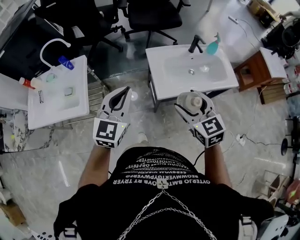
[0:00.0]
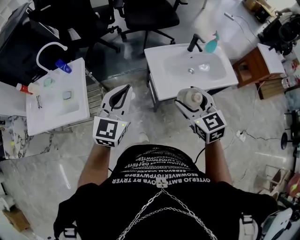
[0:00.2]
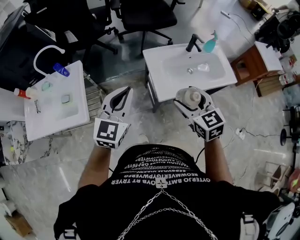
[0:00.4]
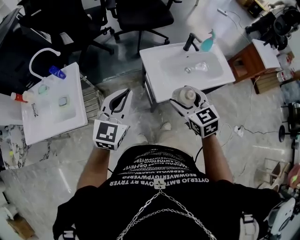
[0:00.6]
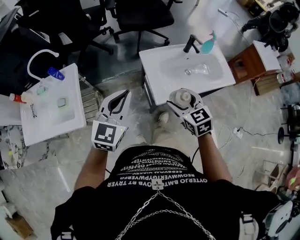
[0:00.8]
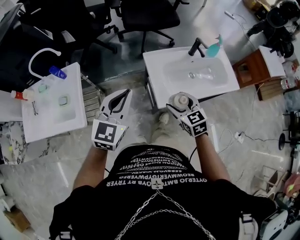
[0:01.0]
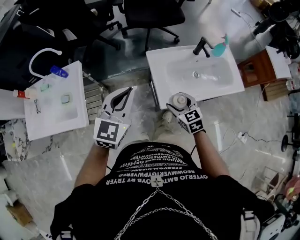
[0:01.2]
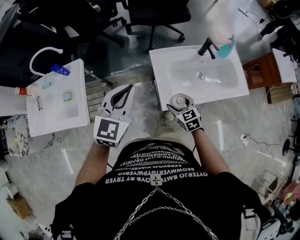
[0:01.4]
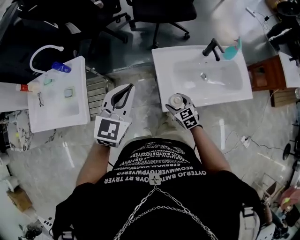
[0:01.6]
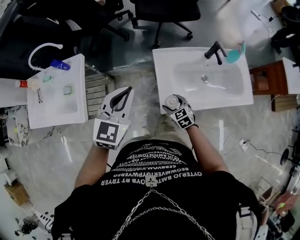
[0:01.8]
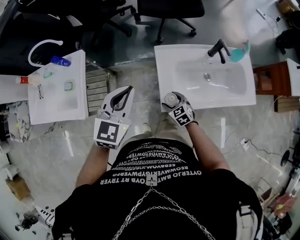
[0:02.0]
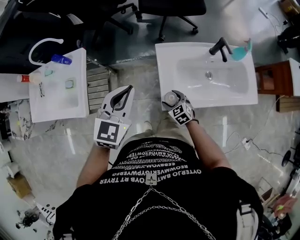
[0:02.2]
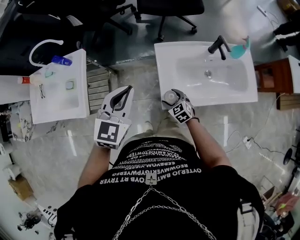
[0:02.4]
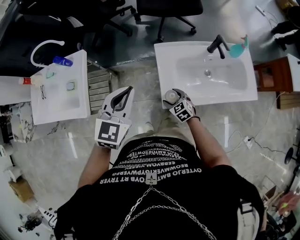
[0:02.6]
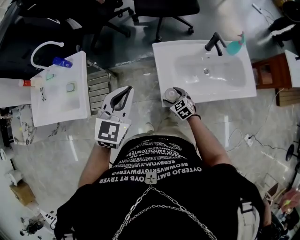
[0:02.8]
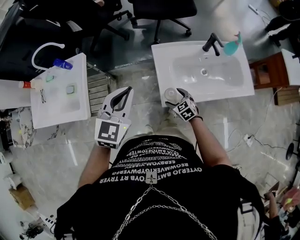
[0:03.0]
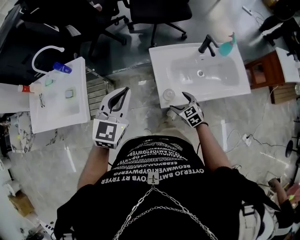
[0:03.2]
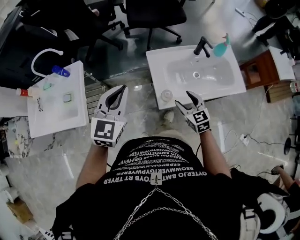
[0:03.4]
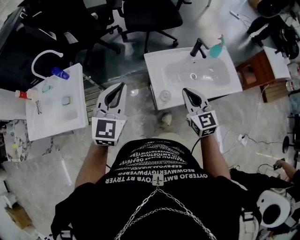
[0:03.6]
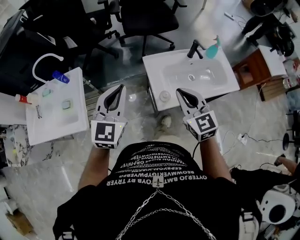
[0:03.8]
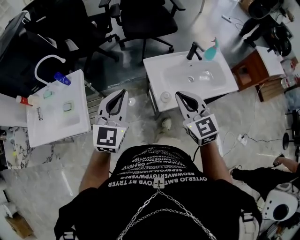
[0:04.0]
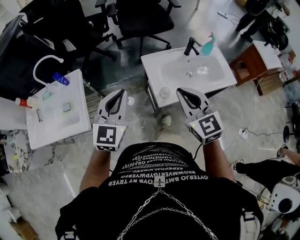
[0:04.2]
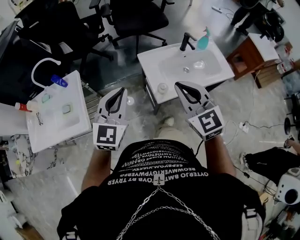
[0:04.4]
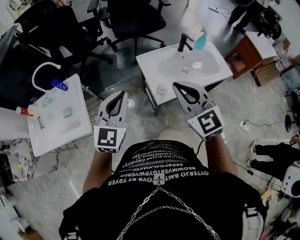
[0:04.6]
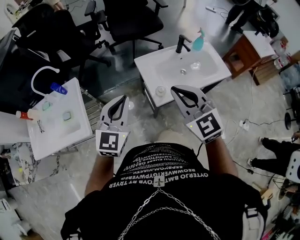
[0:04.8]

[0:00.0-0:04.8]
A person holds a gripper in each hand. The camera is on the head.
0:00.0 to 0:01.6: The left gripper is displaced forward by roughly 20 cm, while the right gripper heads downward and forward, covering approximately 35 cm, and rotates approximately 20 degrees.
0:03.2 to 0:04.8: The right gripper is displaced upward by some 40 cm, tips its fingers upward by about 30 degrees, and closes up. The left gripper heads backward and upward, covering about 10 cm.

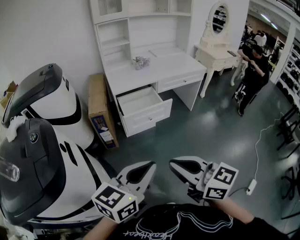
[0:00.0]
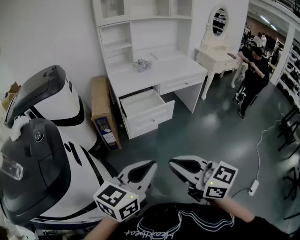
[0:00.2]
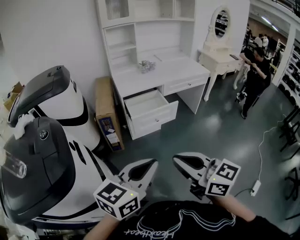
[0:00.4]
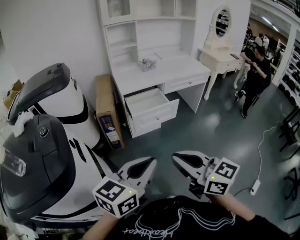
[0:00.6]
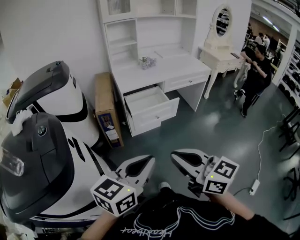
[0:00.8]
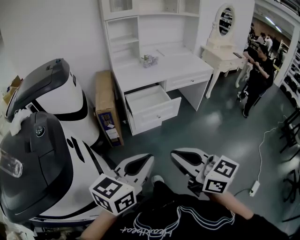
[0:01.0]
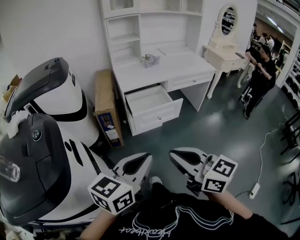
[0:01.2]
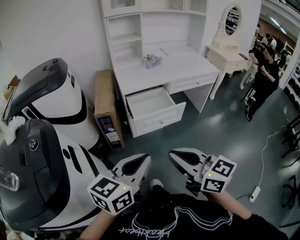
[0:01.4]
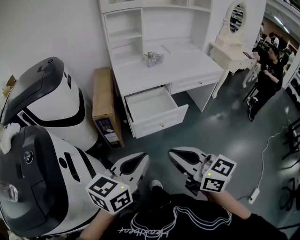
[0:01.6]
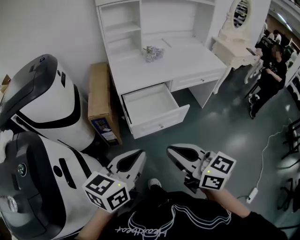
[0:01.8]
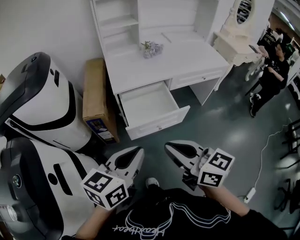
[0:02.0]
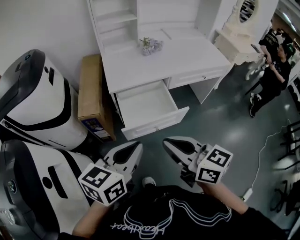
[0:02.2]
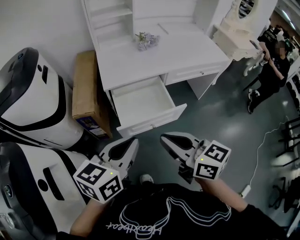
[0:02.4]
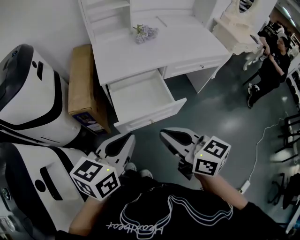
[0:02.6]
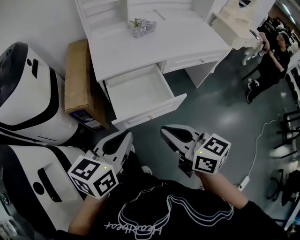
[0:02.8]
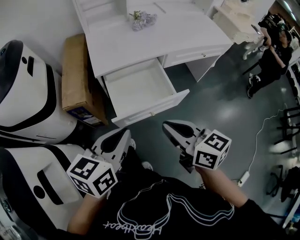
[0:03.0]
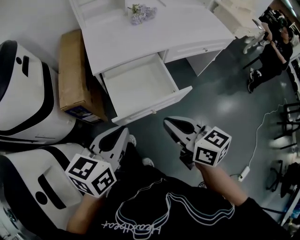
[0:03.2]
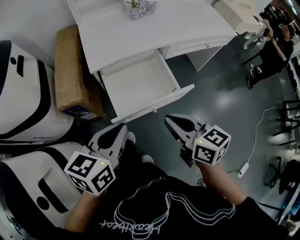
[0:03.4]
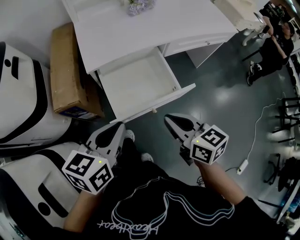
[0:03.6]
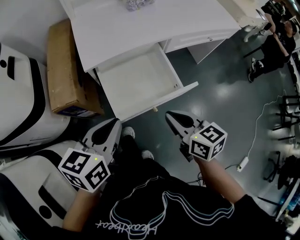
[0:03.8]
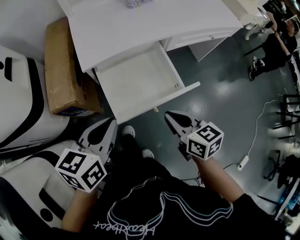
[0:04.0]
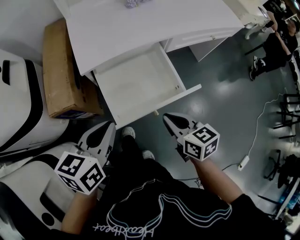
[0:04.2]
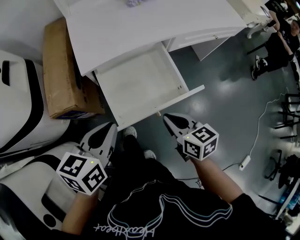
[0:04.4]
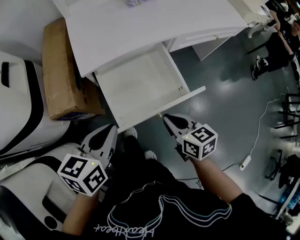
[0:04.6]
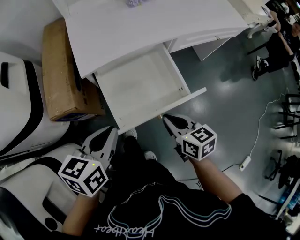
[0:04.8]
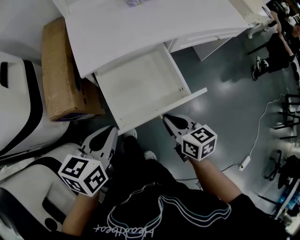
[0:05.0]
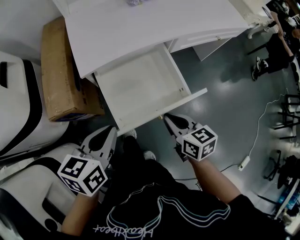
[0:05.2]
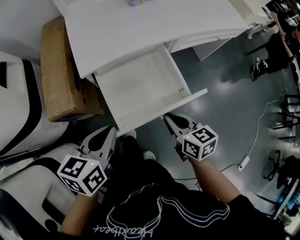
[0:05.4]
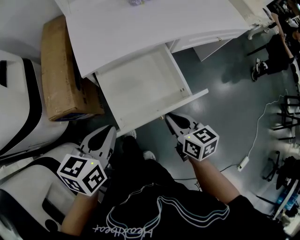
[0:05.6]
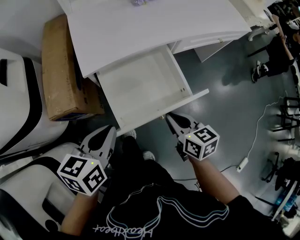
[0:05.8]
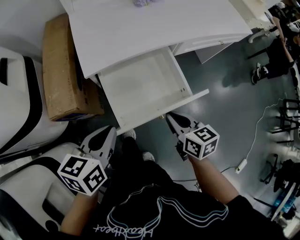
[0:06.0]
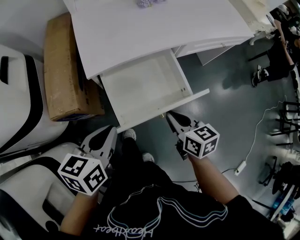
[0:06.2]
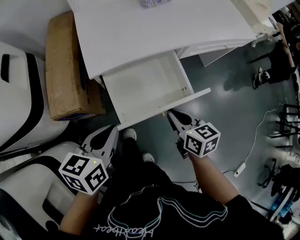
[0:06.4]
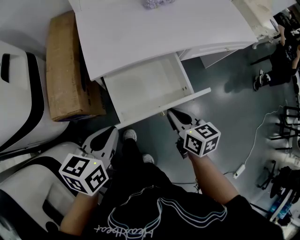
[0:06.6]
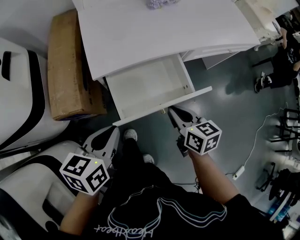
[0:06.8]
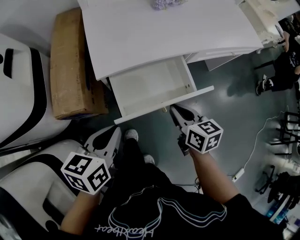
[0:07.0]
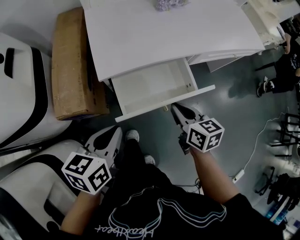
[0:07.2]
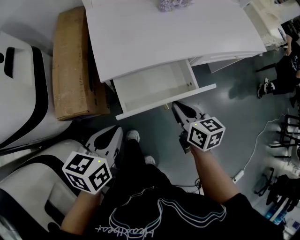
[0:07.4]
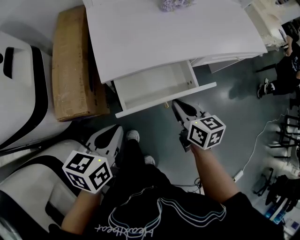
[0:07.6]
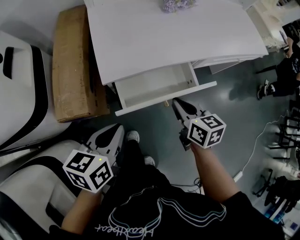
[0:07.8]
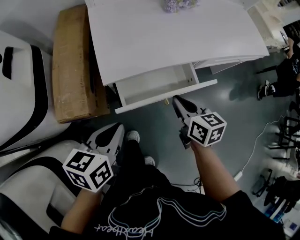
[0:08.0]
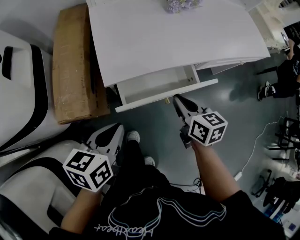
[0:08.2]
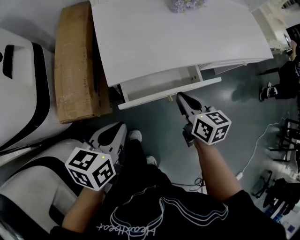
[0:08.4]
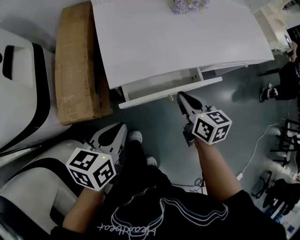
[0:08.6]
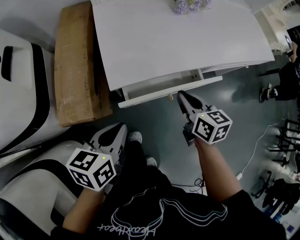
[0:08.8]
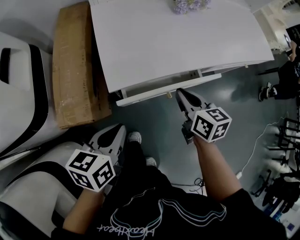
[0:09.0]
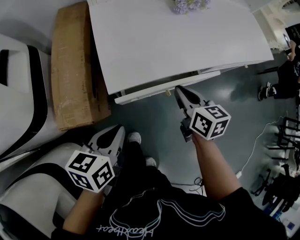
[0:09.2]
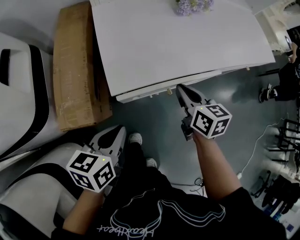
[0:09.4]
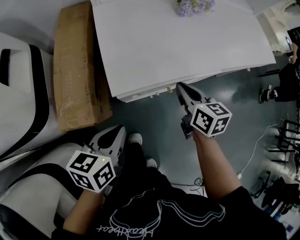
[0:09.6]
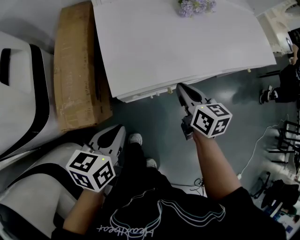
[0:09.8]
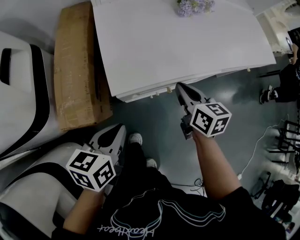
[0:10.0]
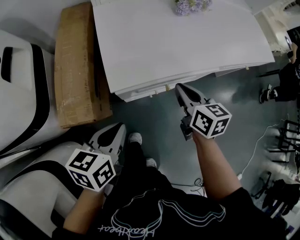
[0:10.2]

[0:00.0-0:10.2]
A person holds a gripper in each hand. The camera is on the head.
0:00.0 to 0:01.4: The right gripper is displaced forward by some 10 cm. Meanwhile the left gripper moves forward and to the left, roughly 10 cm.
0:01.4 to 0:03.0: Both grippers travel together forward and downward, some 30 cm.
0:03.0 to 0:04.4: Both grippers travel together downward and forward, roughly 15 cm.
0:04.4 to 0:05.8: The grippers make only small movements.
0:05.8 to 0:07.2: The right gripper moves forward, some 10 cm.
0:07.2 to 0:08.8: The right gripper is displaced forward by about 10 cm. Meanwhile the left gripper shifts by approximately 5 cm.
0:08.8 to 0:10.2: The grippers move only a little.

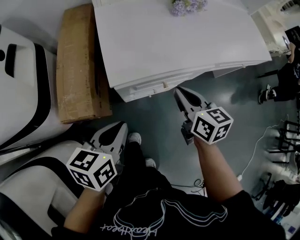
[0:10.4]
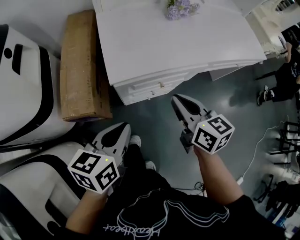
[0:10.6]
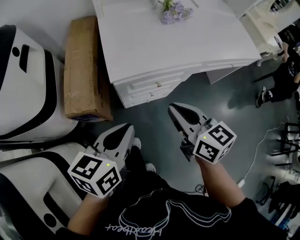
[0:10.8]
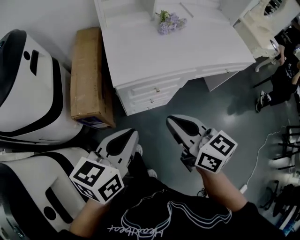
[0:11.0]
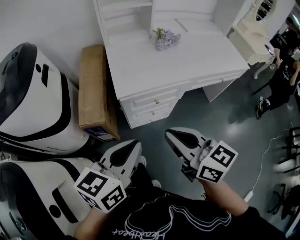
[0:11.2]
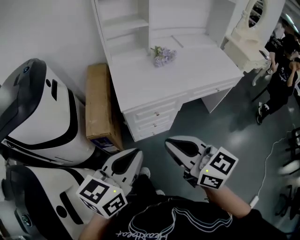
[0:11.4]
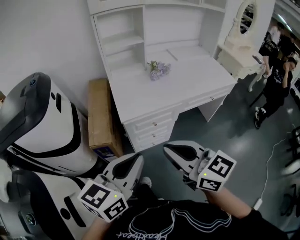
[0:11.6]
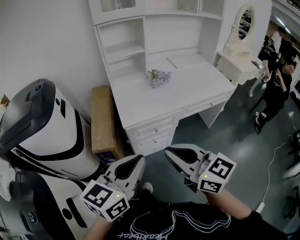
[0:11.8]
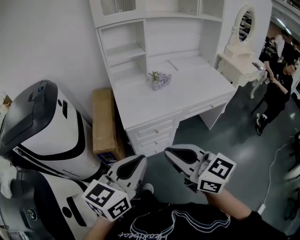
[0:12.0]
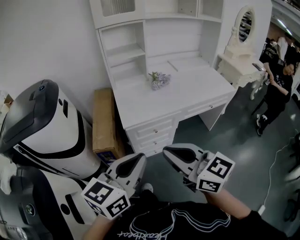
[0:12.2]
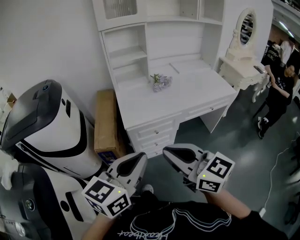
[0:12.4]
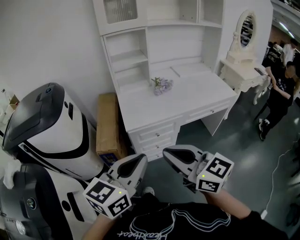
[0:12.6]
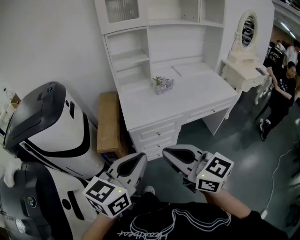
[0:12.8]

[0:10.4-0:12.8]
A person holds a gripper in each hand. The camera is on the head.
0:10.4 to 0:11.6: Both grippers travel together upward and backward, approximately 35 cm. The left gripper turns by some 30 degrees. Meanwhile the right gripper swivels some 30 degrees.
0:11.6 to 0:12.8: The left gripper changes place by about 5 cm; the right gripper shifts by roughly 5 cm.

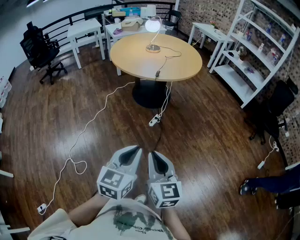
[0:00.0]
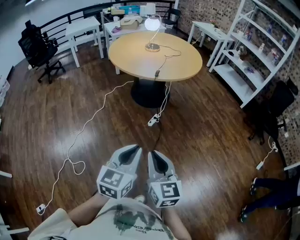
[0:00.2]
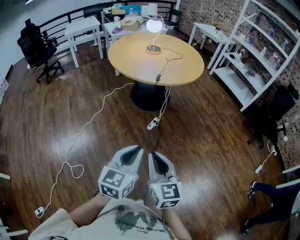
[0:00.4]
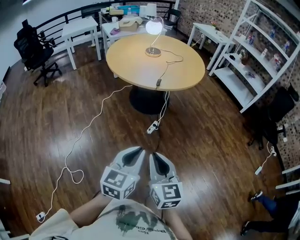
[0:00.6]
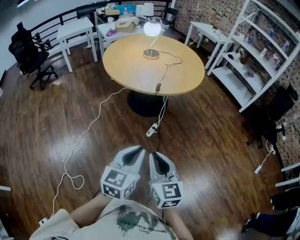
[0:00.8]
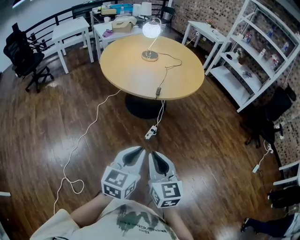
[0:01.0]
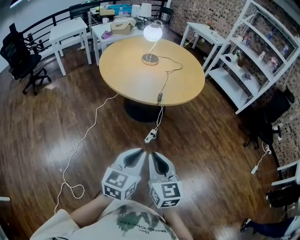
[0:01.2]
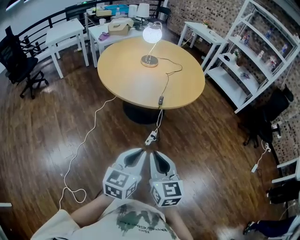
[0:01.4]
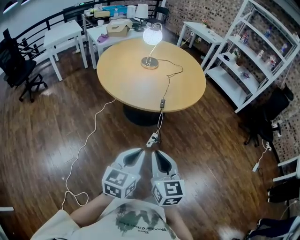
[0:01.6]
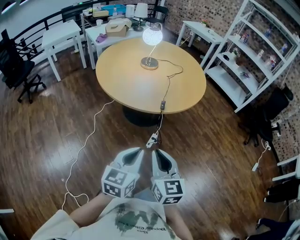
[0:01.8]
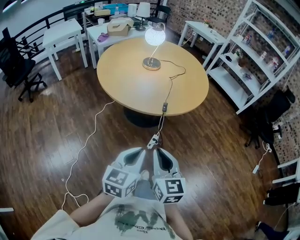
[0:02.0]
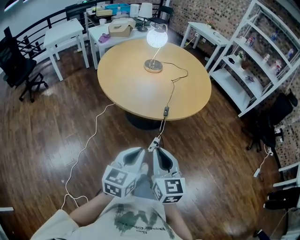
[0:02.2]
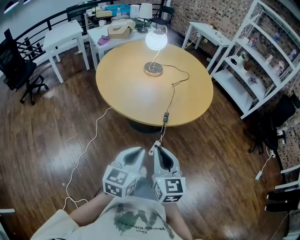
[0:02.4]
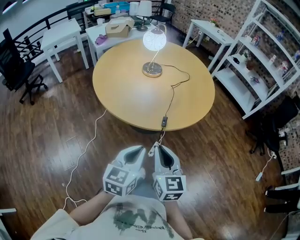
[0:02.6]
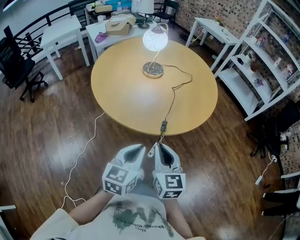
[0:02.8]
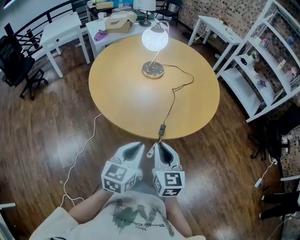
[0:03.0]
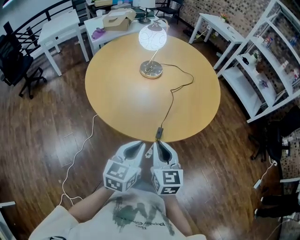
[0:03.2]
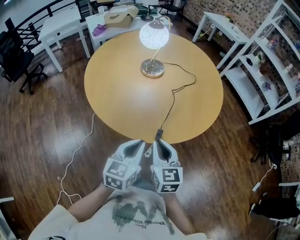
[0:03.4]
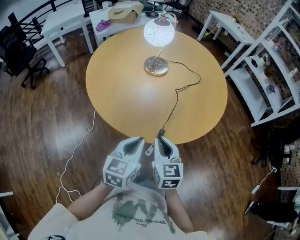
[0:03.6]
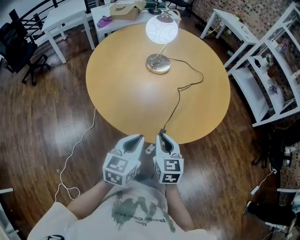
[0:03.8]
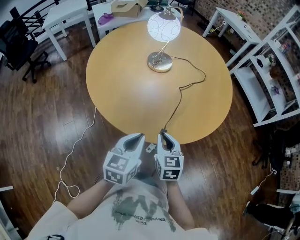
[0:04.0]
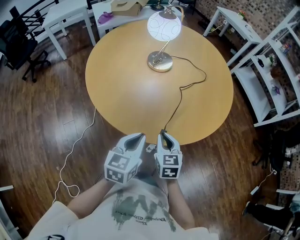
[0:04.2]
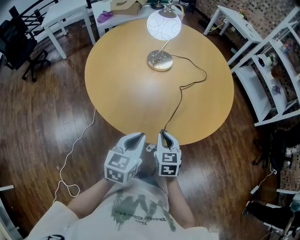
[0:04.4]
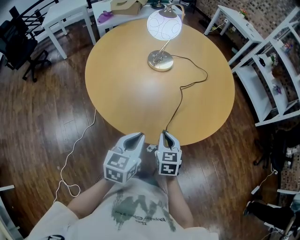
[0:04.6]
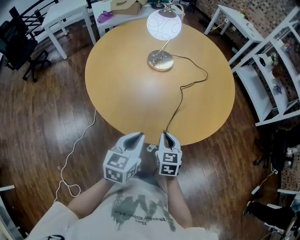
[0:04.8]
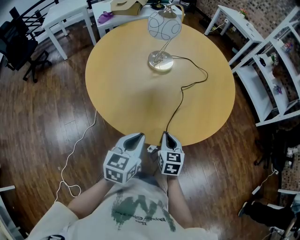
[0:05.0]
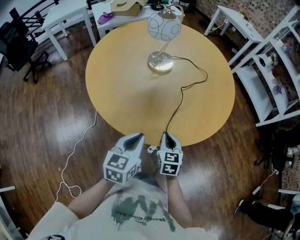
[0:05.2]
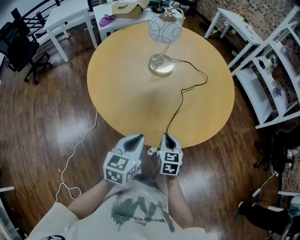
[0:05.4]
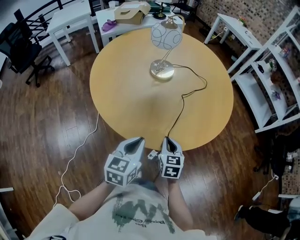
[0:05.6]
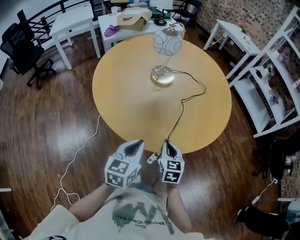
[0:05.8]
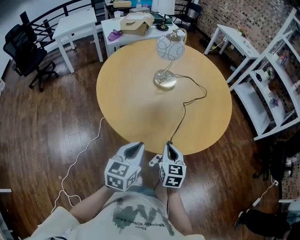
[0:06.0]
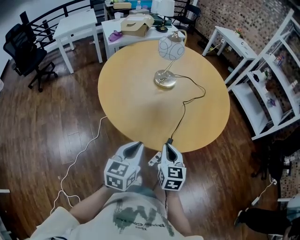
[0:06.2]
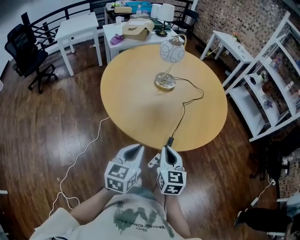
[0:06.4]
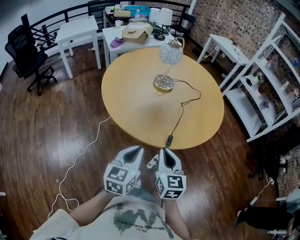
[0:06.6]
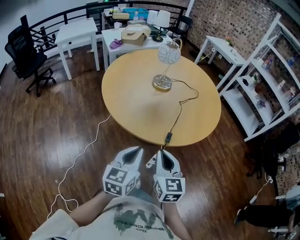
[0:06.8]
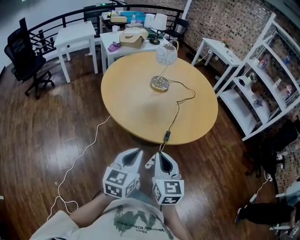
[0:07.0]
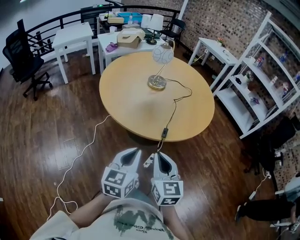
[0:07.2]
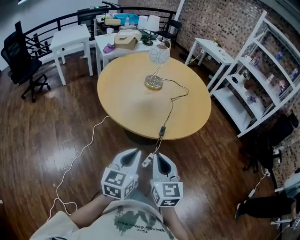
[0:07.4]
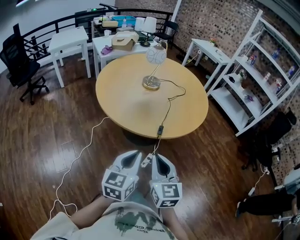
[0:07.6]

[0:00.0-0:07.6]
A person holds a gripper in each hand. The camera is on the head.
0:00.0 to 0:01.6: The grippers both shift forward and to the left by some 35 cm.
0:01.6 to 0:03.0: The two grippers go approximately 25 cm forward.
0:03.0 to 0:04.6: The right gripper is displaced downward and forward by roughly 20 cm; the left gripper goes approximately 15 cm forward and downward.
0:04.6 to 0:06.0: The right gripper is displaced upward by about 5 cm; the left gripper ends up some 5 cm from where it was.
0:06.0 to 0:07.6: Both grippers move backward and upward, roughly 25 cm.
